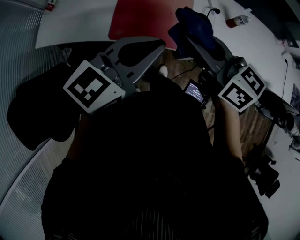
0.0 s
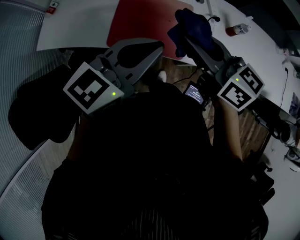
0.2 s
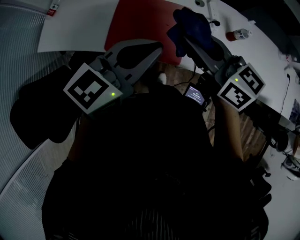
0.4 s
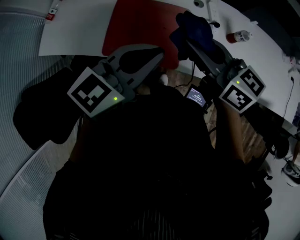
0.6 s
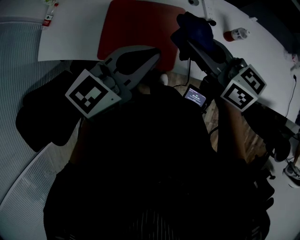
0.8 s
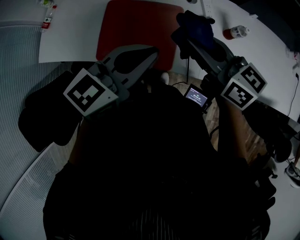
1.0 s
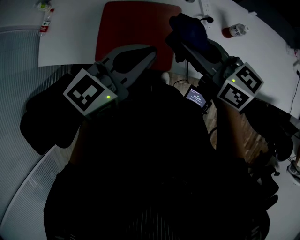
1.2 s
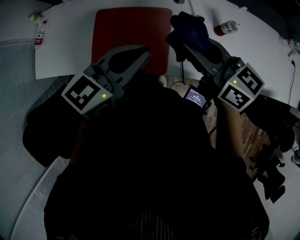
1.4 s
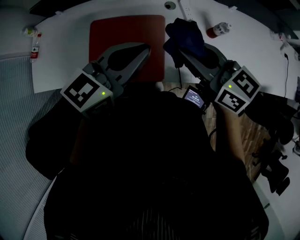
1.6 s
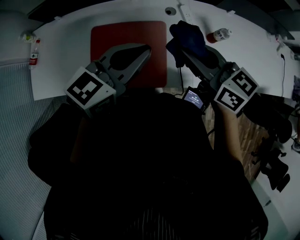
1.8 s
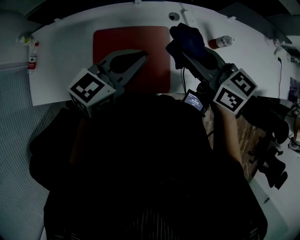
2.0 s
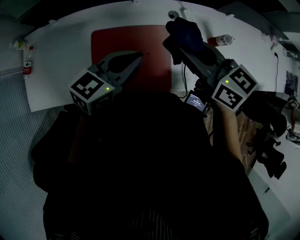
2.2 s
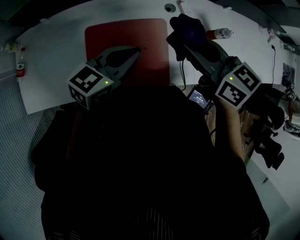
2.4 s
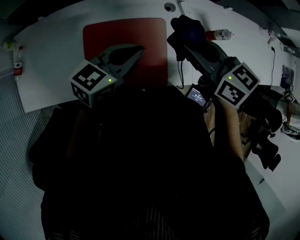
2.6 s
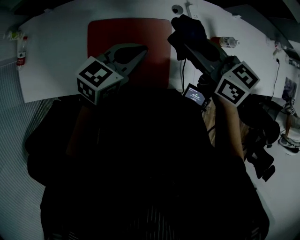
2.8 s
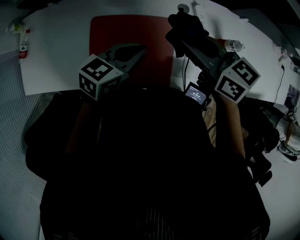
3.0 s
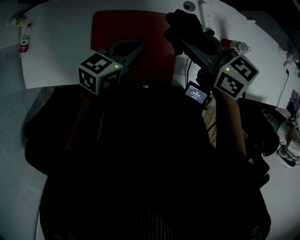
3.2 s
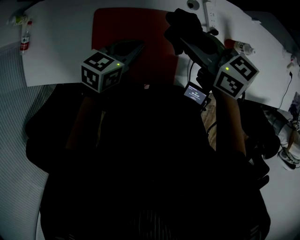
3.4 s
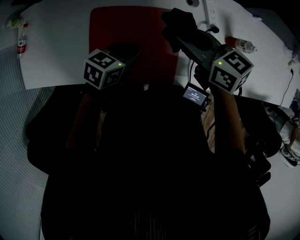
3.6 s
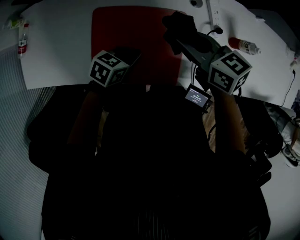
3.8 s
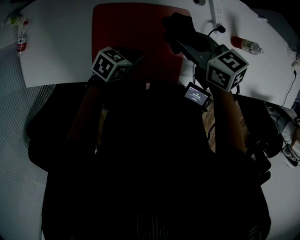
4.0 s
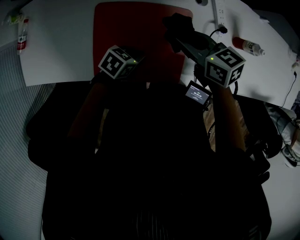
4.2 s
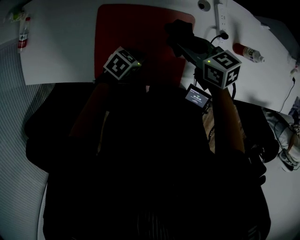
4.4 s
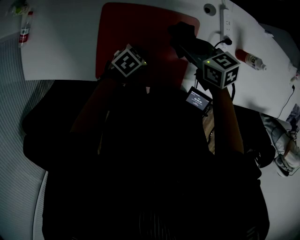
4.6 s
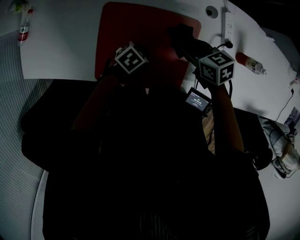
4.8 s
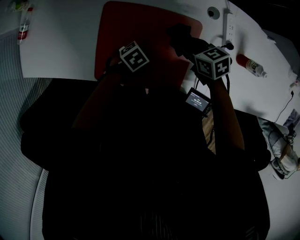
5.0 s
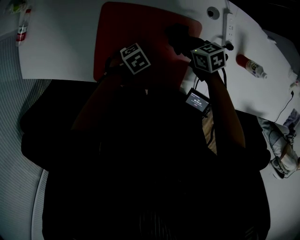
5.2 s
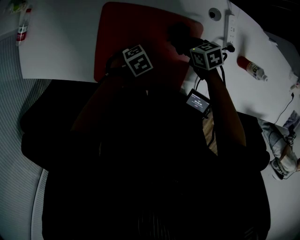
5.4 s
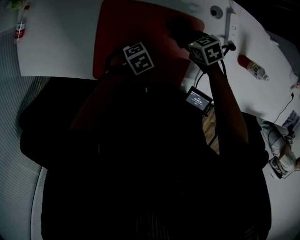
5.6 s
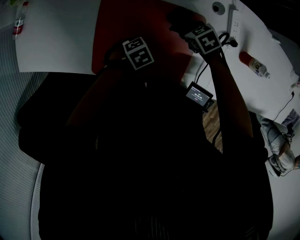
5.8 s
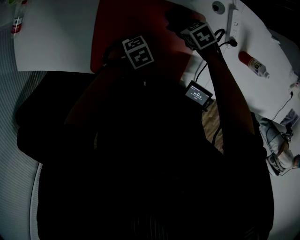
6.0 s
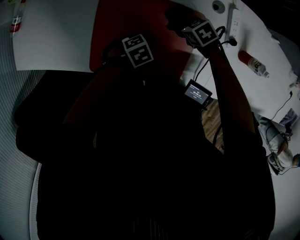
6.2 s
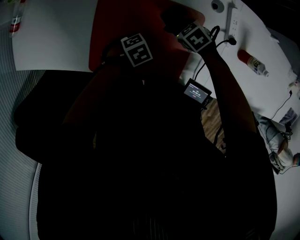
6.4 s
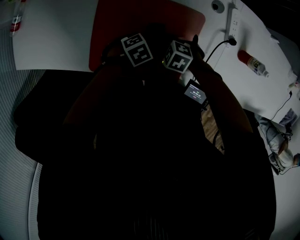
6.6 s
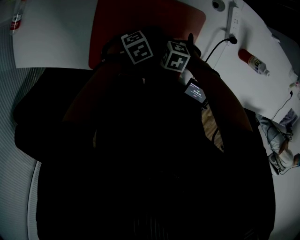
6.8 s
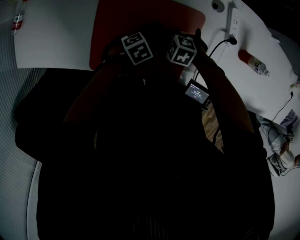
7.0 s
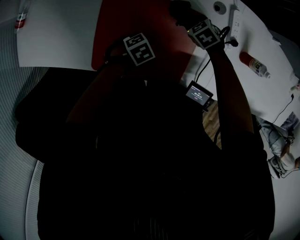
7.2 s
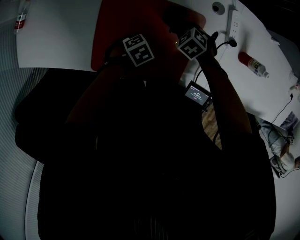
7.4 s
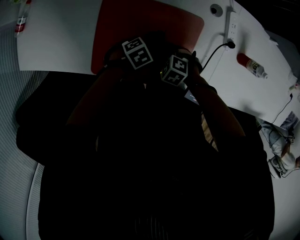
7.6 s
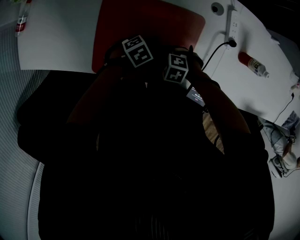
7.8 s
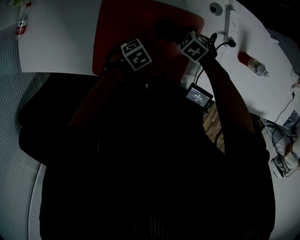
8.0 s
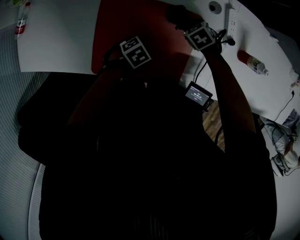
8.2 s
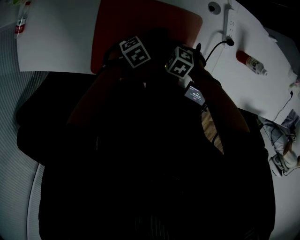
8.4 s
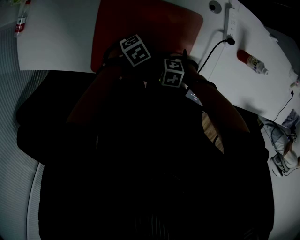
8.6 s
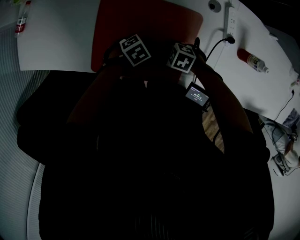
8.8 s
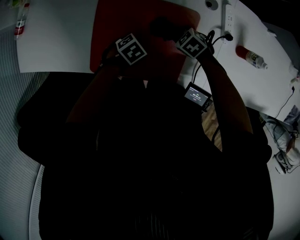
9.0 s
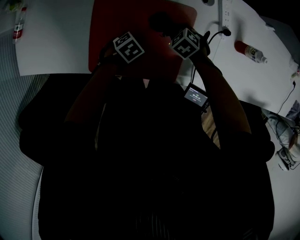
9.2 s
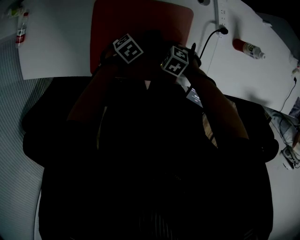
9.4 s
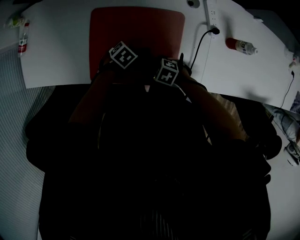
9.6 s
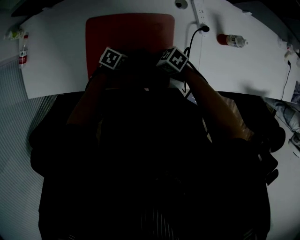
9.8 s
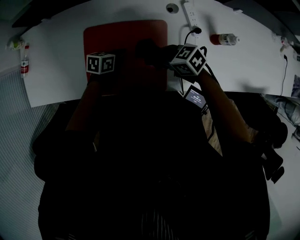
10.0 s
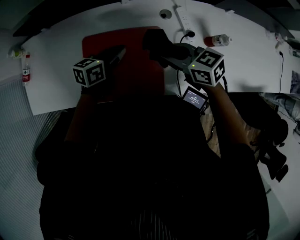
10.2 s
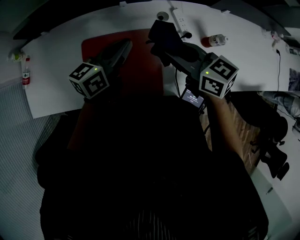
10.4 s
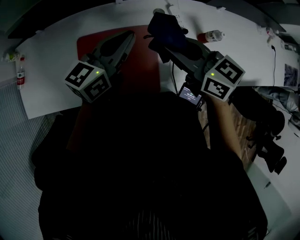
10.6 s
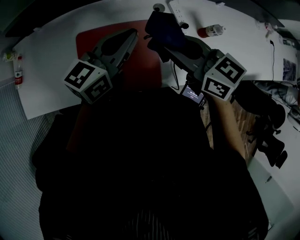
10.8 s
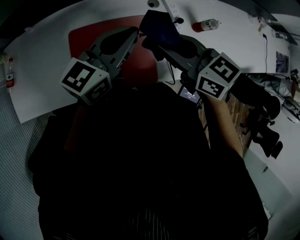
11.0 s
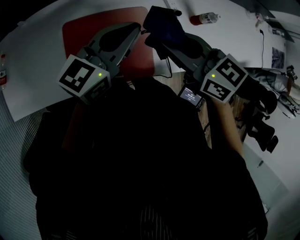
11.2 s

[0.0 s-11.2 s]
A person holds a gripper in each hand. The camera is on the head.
0.0 to 1.6 s: The grippers both shift forward and to the right by about 25 cm.
1.6 to 3.2 s: The left gripper heads downward, to the left and forward, covering some 20 cm, and swivels approximately 20 degrees. The right gripper goes approximately 15 cm forward, to the left and downward.
3.2 to 4.8 s: Both grippers travel together downward, roughly 25 cm. The left gripper points its fingers approximately 30 degrees further downward, while the right gripper changes its angle by roughly 20 degrees.
4.8 to 6.4 s: The right gripper moves downward, approximately 15 cm, and changes its angle by approximately 40 degrees.
8.0 to 9.6 s: The right gripper moves approximately 15 cm.
9.6 to 11.2 s: Both grippers move upward, approximately 40 cm. The right gripper tilts its fingers roughly 40 degrees upward, while the left gripper tilts its fingers roughly 70 degrees upward.

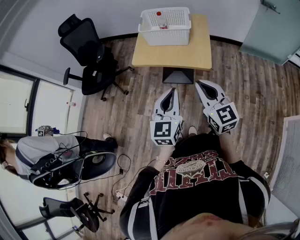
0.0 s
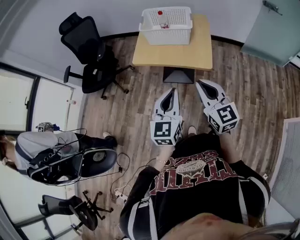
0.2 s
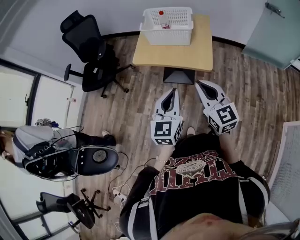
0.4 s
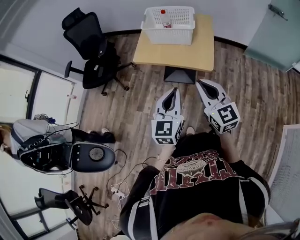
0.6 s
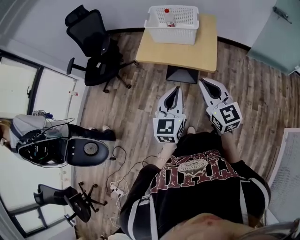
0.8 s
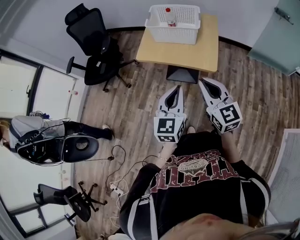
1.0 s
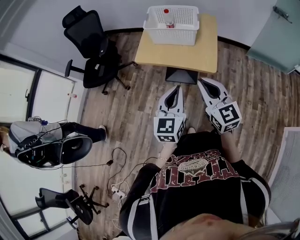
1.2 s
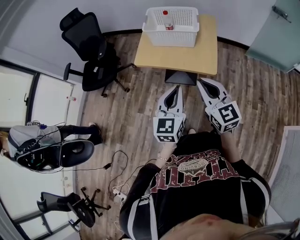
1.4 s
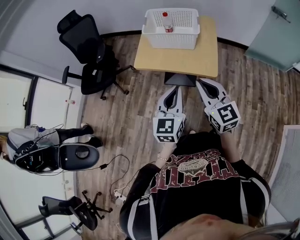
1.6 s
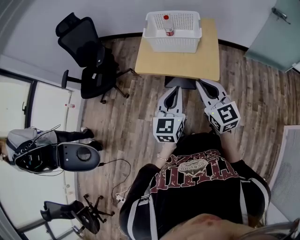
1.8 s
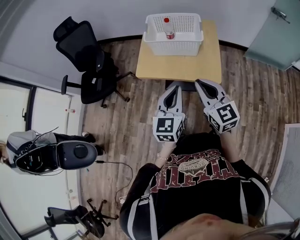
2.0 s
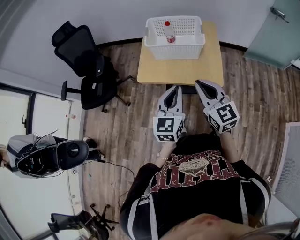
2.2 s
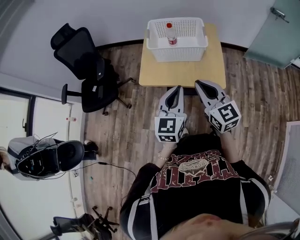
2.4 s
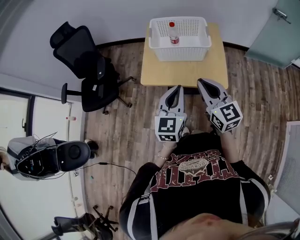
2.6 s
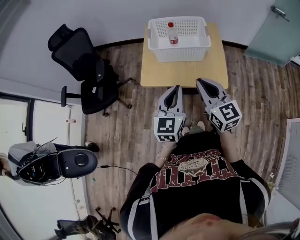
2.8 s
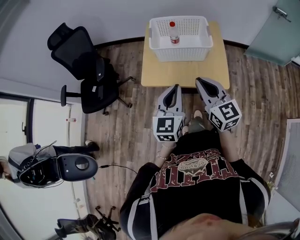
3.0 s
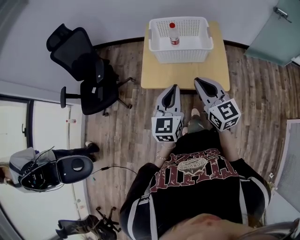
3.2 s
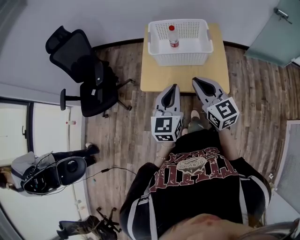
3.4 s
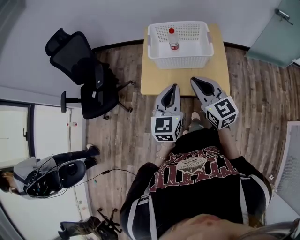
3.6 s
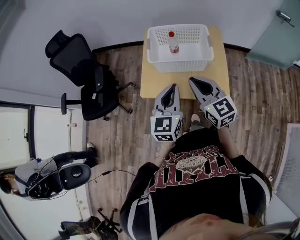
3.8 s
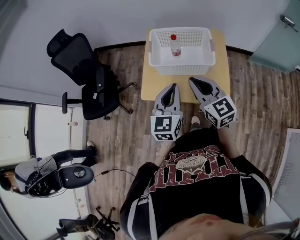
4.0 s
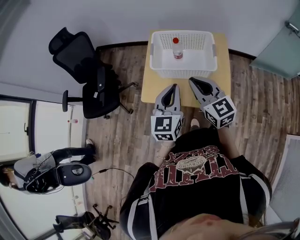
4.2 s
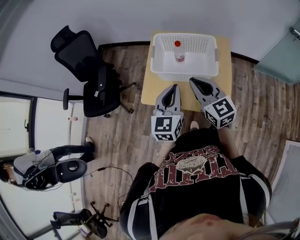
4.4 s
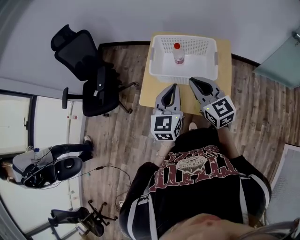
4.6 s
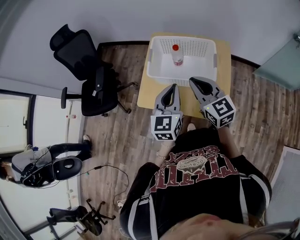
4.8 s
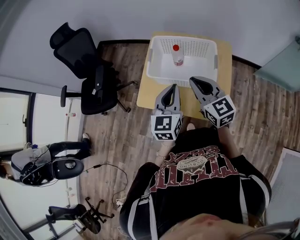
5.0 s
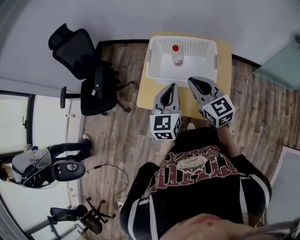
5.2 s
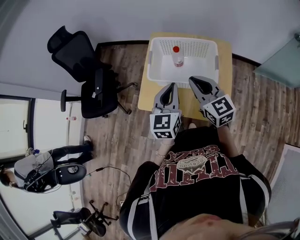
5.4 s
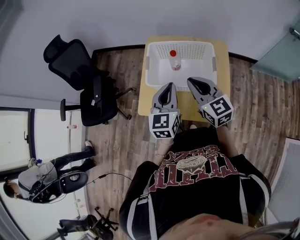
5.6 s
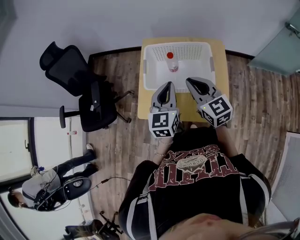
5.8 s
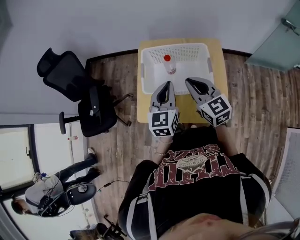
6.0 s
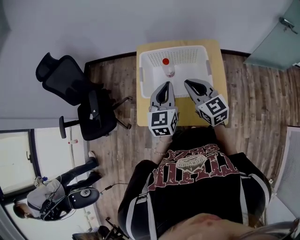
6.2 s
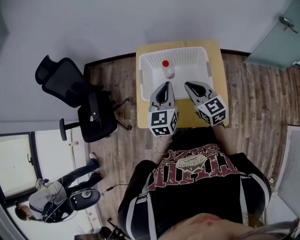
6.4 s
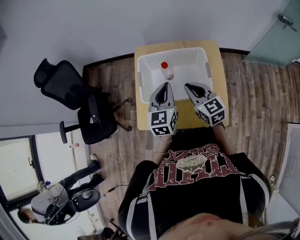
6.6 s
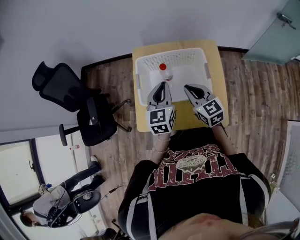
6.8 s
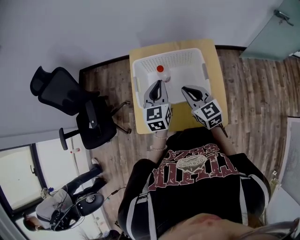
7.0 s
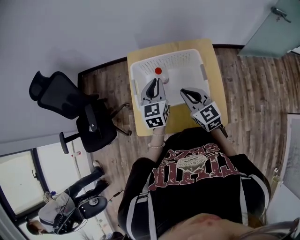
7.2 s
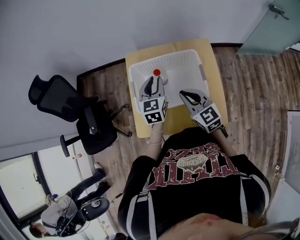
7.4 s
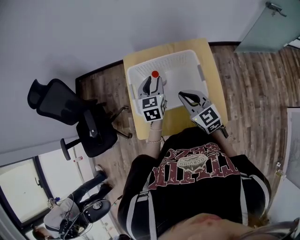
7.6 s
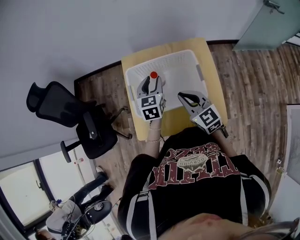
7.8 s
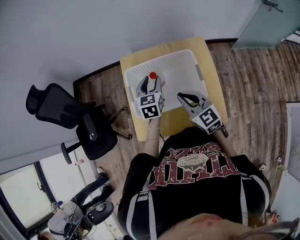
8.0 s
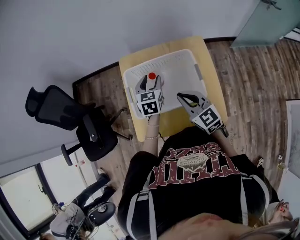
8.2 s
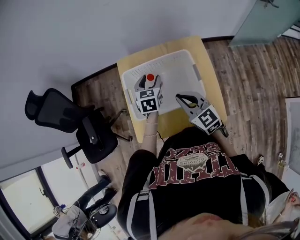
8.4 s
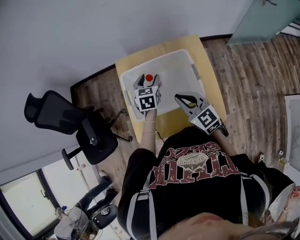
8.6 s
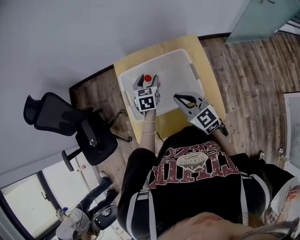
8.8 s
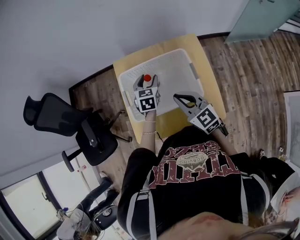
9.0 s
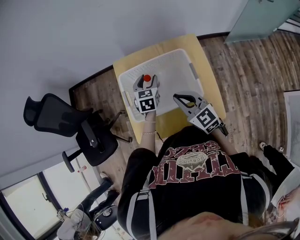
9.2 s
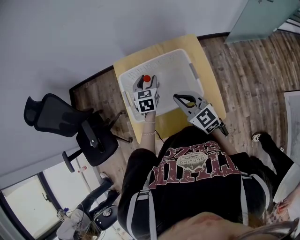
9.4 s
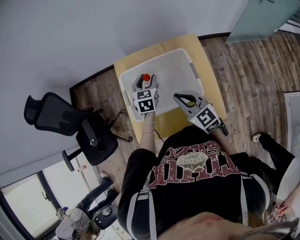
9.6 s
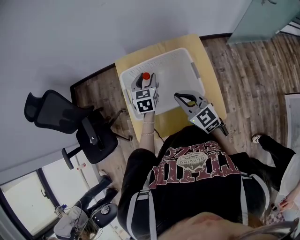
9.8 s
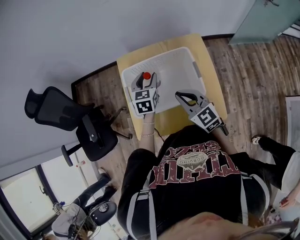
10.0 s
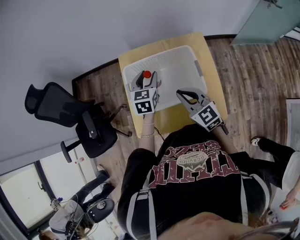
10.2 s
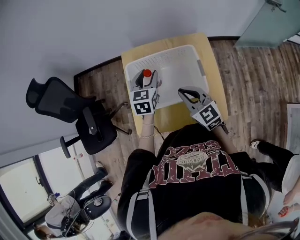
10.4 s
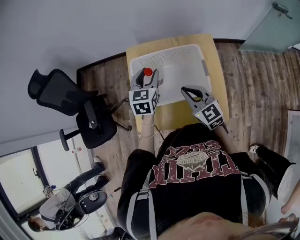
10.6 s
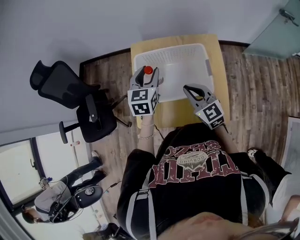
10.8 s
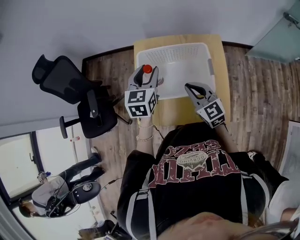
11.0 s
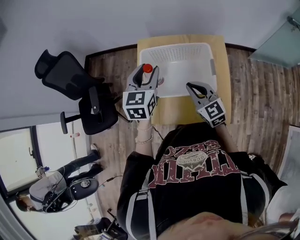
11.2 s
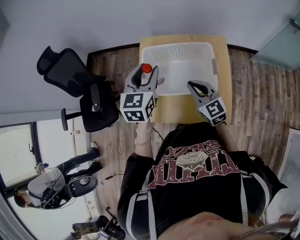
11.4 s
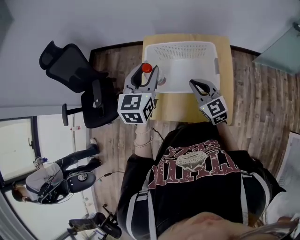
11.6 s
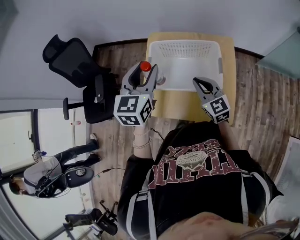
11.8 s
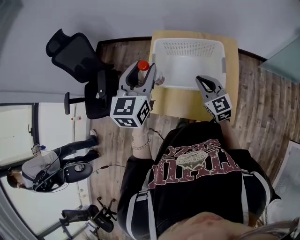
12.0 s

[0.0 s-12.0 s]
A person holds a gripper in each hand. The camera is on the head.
0.0 to 1.6 s: The grippers both shift forward by about 10 cm.
1.6 to 3.0 s: The grippers both shift forward and to the left by some 15 cm.
3.0 to 4.4 s: Both grippers travel together forward, approximately 20 cm.
4.4 to 6.0 s: The grippers both shift forward by some 10 cm.
6.0 to 7.6 s: The right gripper heads downward, covering some 5 cm, while the left gripper shifts about 15 cm forward and downward, and opens.
7.6 to 9.0 s: The left gripper shifts roughly 5 cm downward.
9.0 to 10.4 s: The left gripper moves upward, about 10 cm.
10.4 to 12.0 s: The left gripper goes approximately 20 cm upward, backward and to the left.

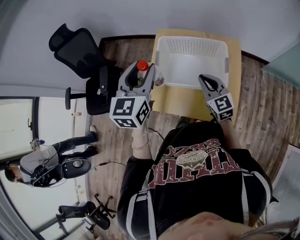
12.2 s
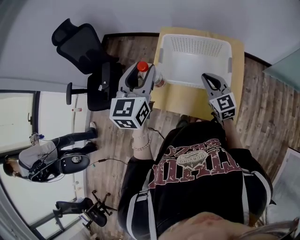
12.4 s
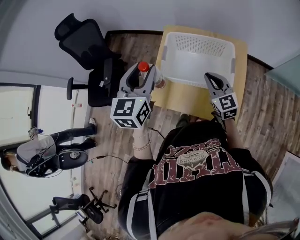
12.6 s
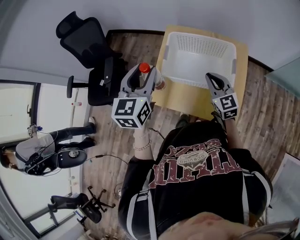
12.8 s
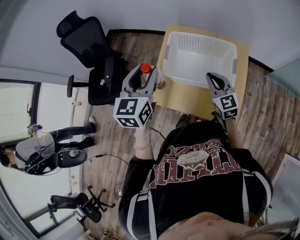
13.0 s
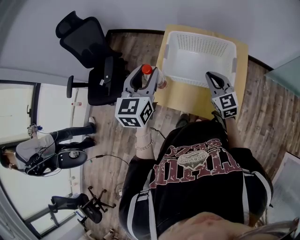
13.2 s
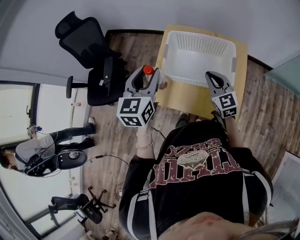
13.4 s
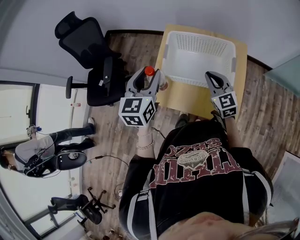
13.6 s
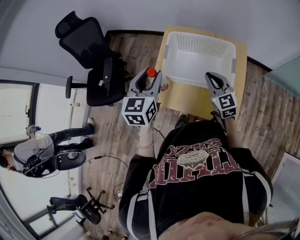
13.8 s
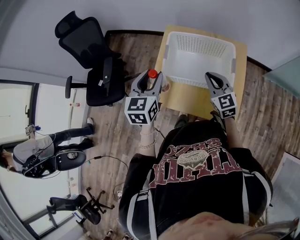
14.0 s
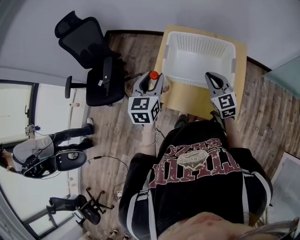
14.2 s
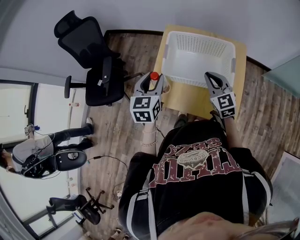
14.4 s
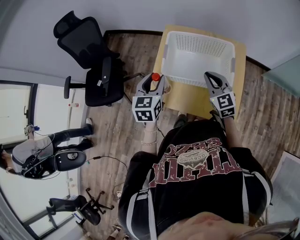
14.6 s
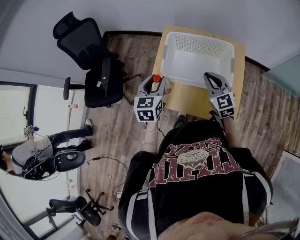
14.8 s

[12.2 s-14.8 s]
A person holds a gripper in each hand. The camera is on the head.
12.2 to 13.4 s: The left gripper shifts by roughly 5 cm.
13.4 to 14.8 s: The left gripper goes about 10 cm downward.
